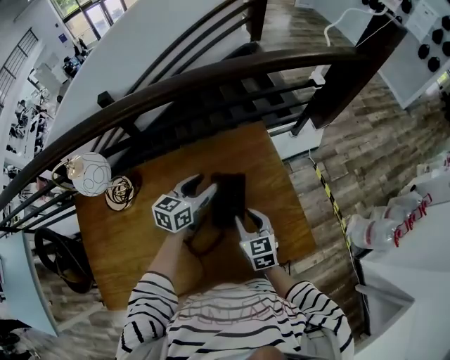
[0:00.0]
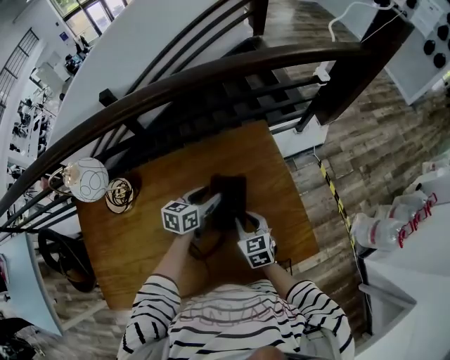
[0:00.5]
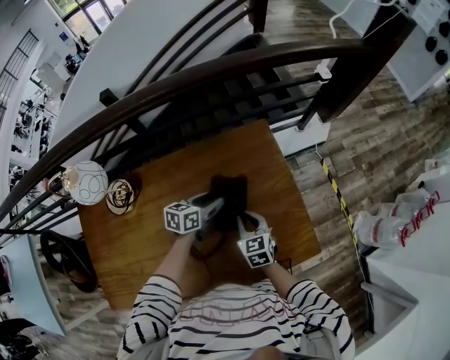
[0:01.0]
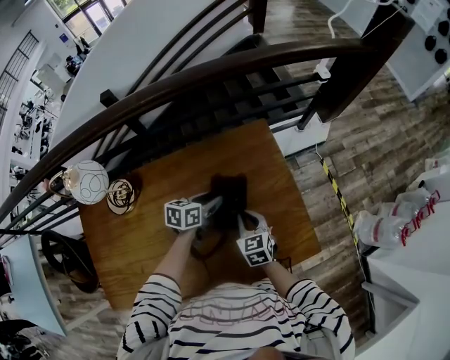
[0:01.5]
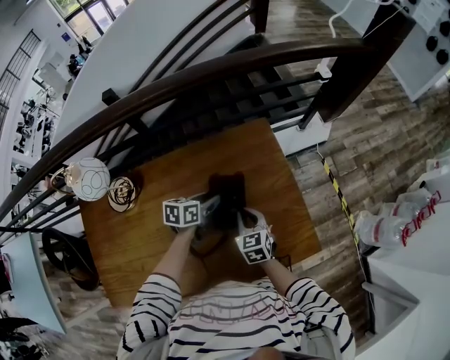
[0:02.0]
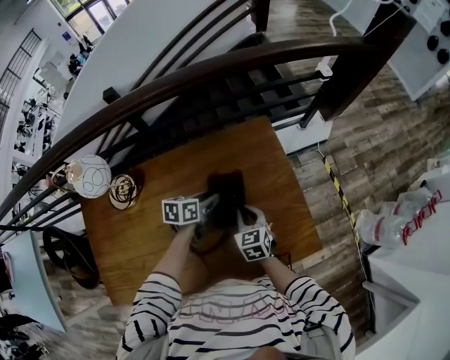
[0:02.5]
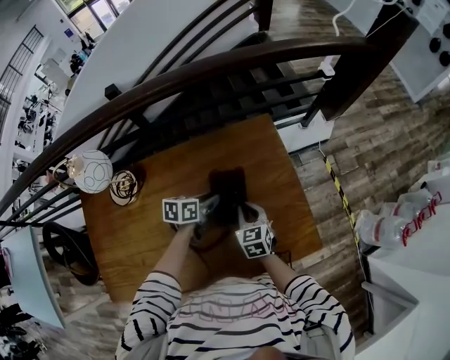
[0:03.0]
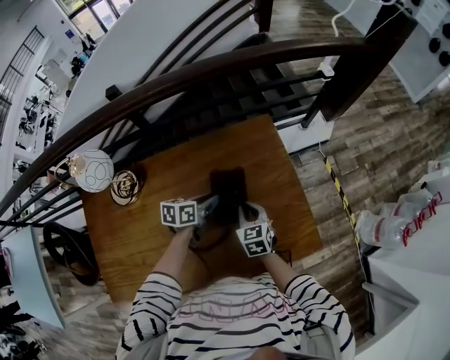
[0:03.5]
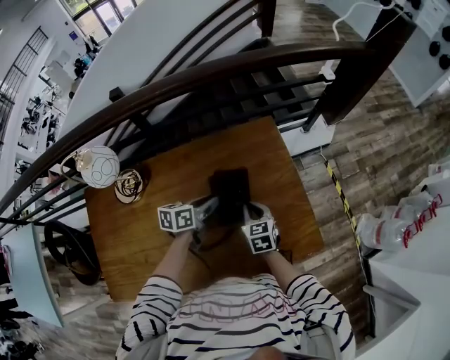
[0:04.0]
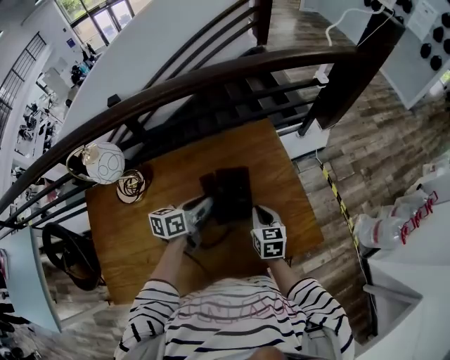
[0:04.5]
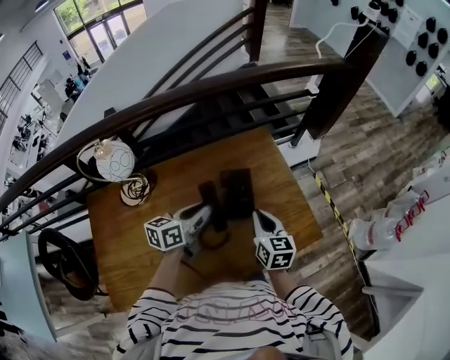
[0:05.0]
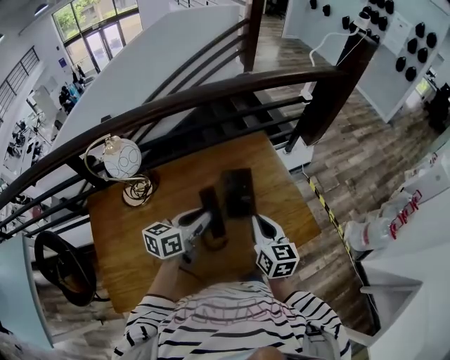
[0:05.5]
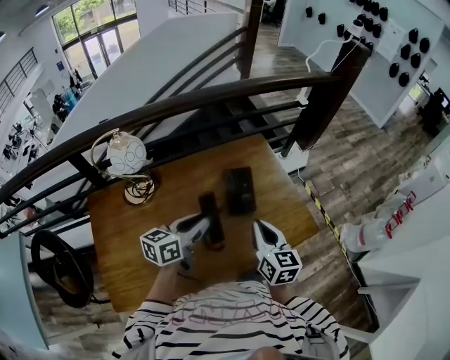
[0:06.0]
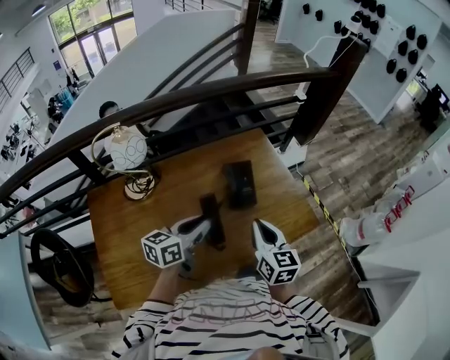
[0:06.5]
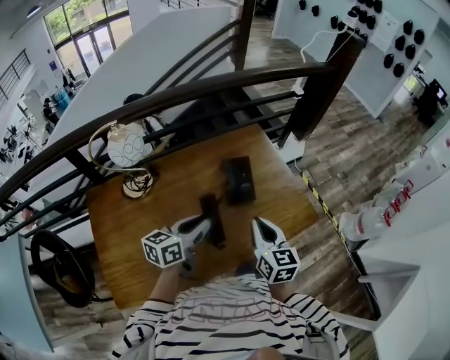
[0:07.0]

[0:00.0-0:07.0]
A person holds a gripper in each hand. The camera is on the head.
0:00.0 to 0:02.0: The left gripper shifts approximately 10 cm downward, and swivels roughly 30 degrees. Meanwhile the right gripper heads downward, covering roughly 5 cm.
0:02.0 to 0:03.5: The grippers stay close to where they were, moving slightly.
0:03.5 to 0:05.0: The grippers both shift upward and backward by roughly 20 cm. The right gripper swivels roughly 30 degrees, while the left gripper swivels roughly 20 degrees.
0:05.0 to 0:07.0: The right gripper heads backward and upward, covering approximately 15 cm; the left gripper travels backward by roughly 15 cm.

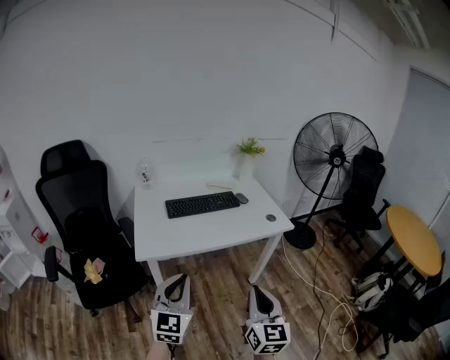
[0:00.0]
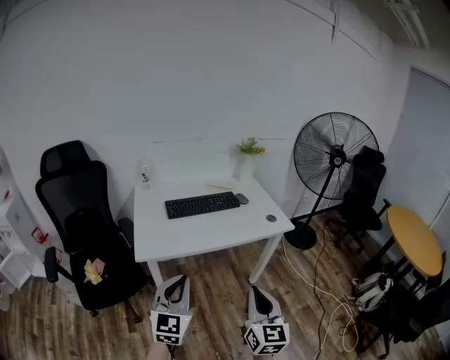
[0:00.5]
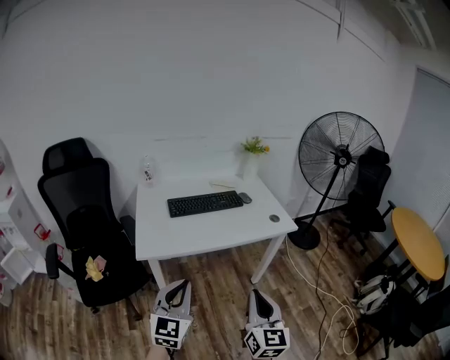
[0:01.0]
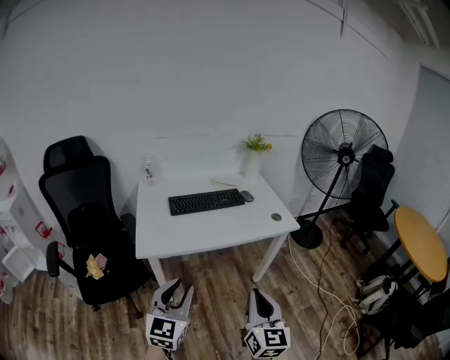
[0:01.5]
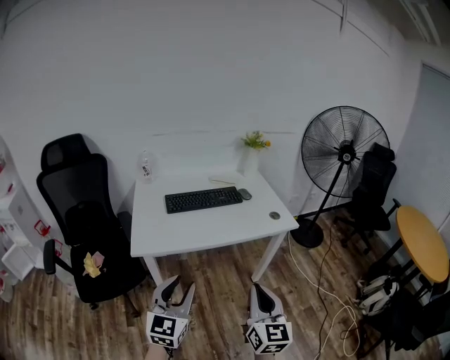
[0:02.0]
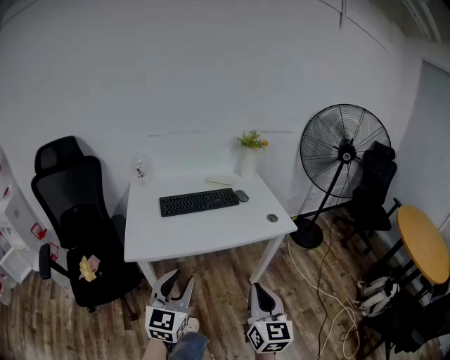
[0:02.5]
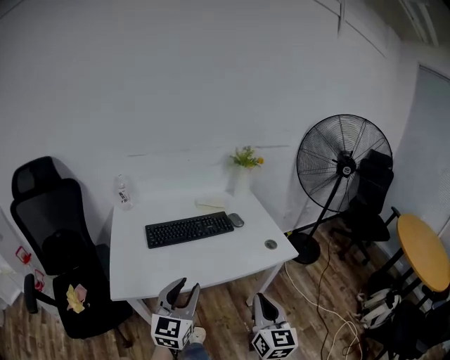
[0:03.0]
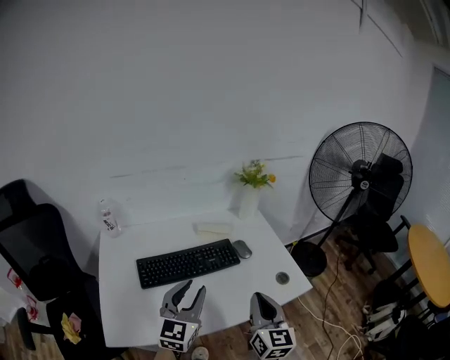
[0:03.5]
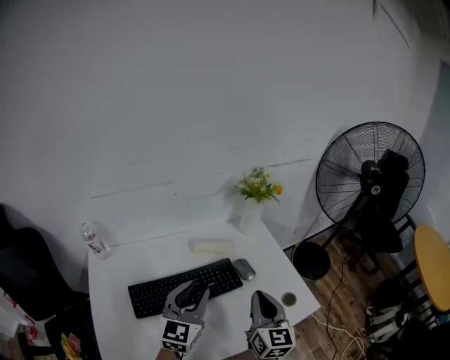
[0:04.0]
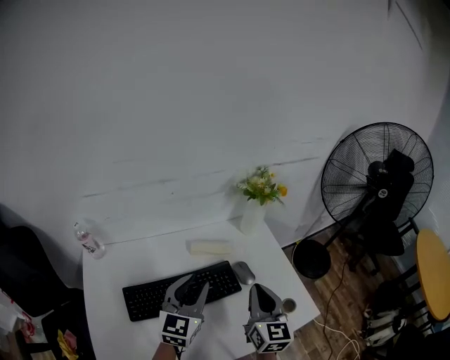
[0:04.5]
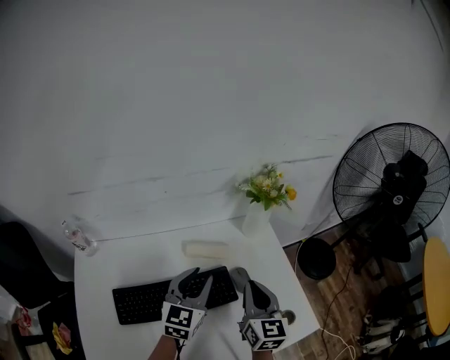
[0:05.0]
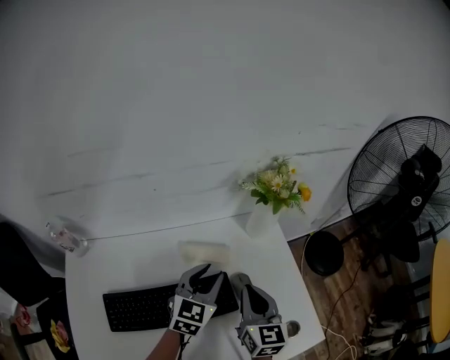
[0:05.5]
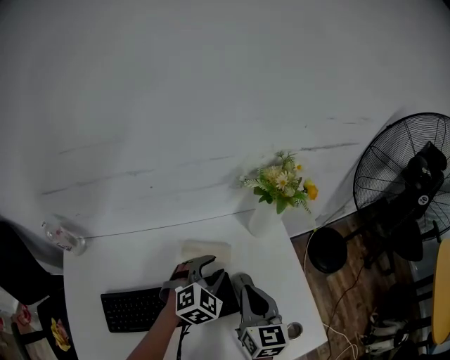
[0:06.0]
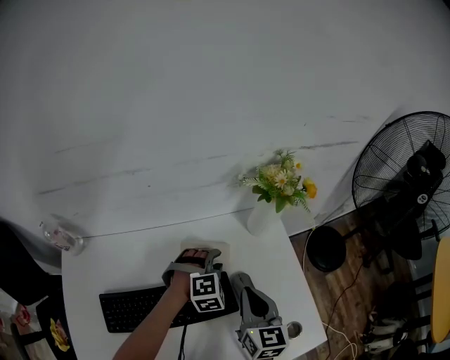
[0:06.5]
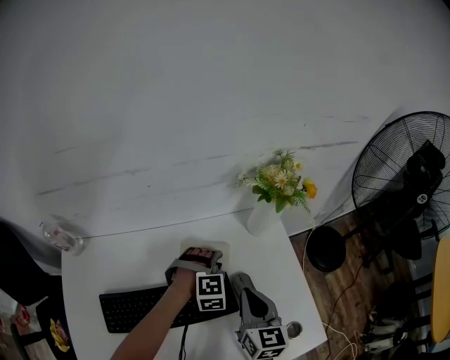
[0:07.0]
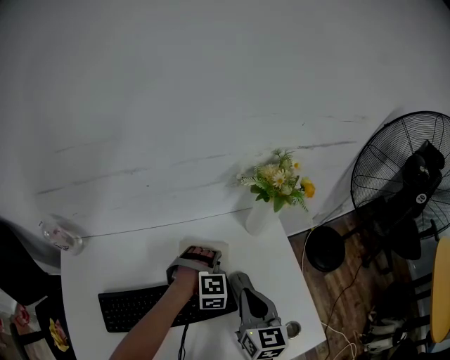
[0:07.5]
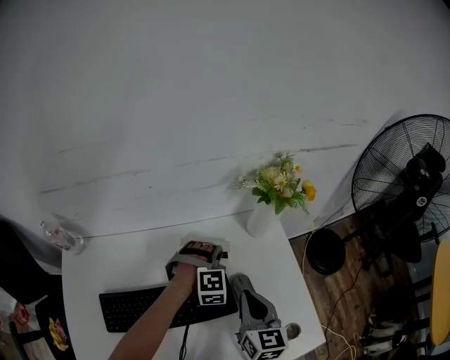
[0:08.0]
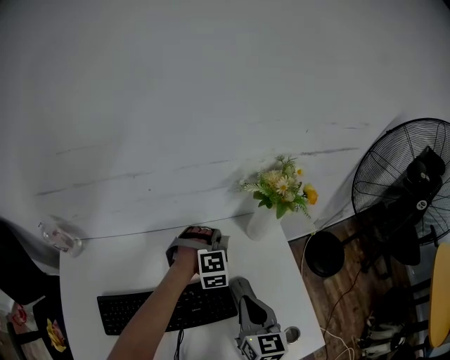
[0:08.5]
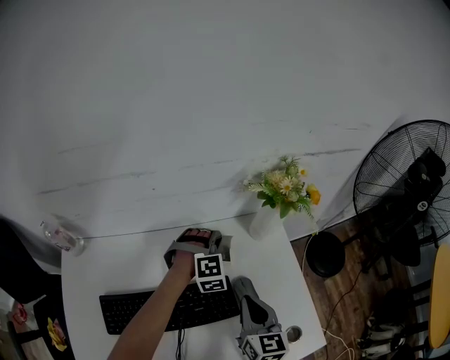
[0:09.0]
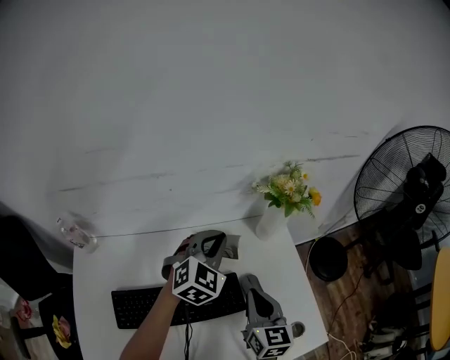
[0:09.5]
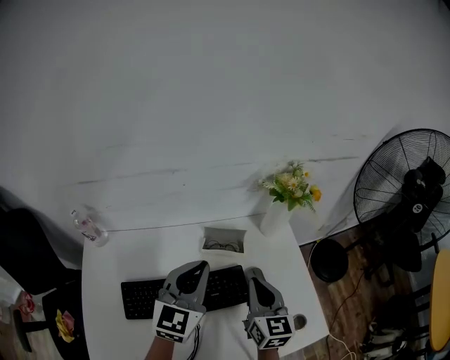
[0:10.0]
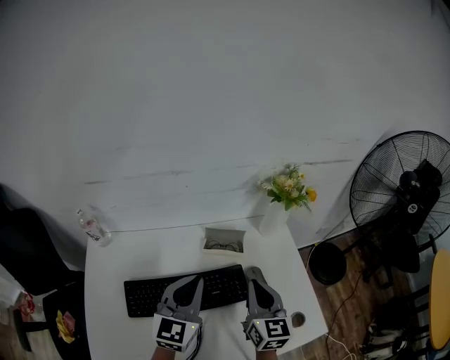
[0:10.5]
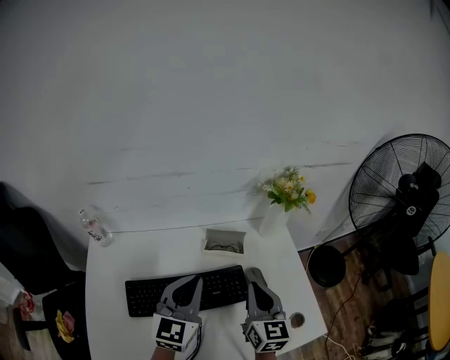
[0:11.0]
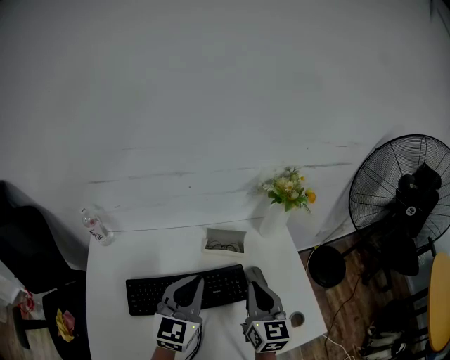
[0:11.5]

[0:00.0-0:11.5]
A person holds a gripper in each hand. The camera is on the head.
0:00.0 to 0:02.0: The right gripper ends up some 5 cm from where it was; the left gripper changes place by about 5 cm, and opens its fingers.
0:02.0 to 0:04.0: Both grippers are carried forward, some 60 cm.
0:04.0 to 0:06.0: Both grippers travel together forward and downward, approximately 25 cm. The left gripper tips its fingers downward by approximately 30 degrees.
0:06.0 to 0:07.5: The left gripper heads downward, covering about 5 cm, and swivels roughly 40 degrees.
0:07.5 to 0:09.5: The left gripper travels upward by roughly 20 cm, tips its fingers upward by about 30 degrees, and closes its fingers.
0:09.5 to 0:11.5: The left gripper moves backward and to the left, approximately 20 cm, and rotates approximately 30 degrees. The right gripper goes some 5 cm upward.

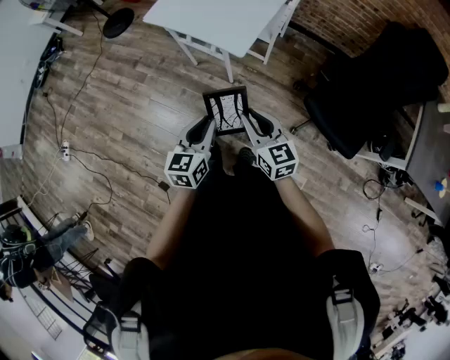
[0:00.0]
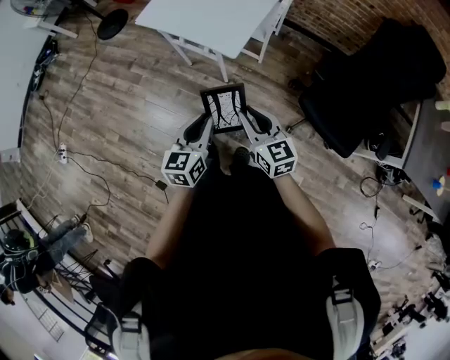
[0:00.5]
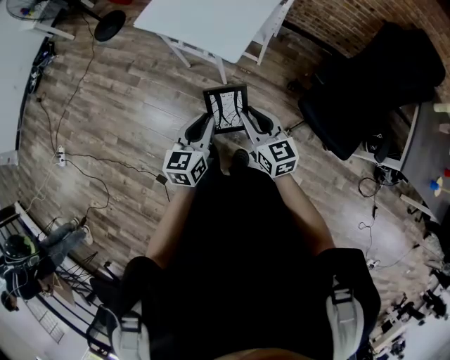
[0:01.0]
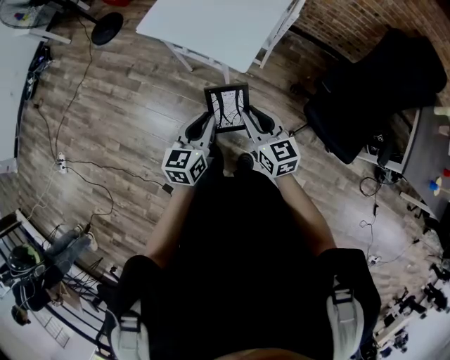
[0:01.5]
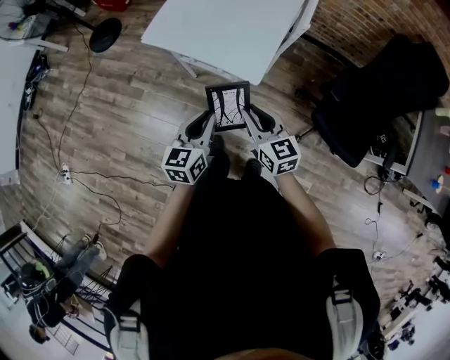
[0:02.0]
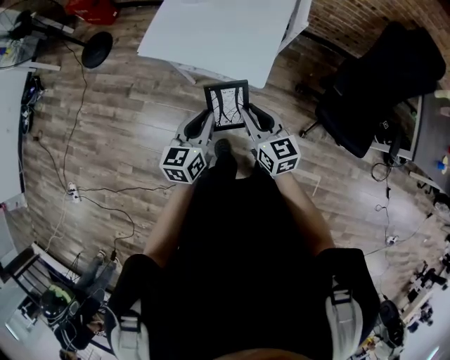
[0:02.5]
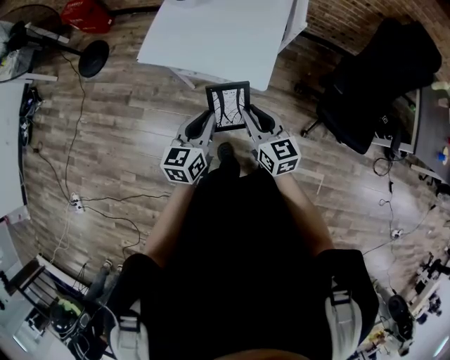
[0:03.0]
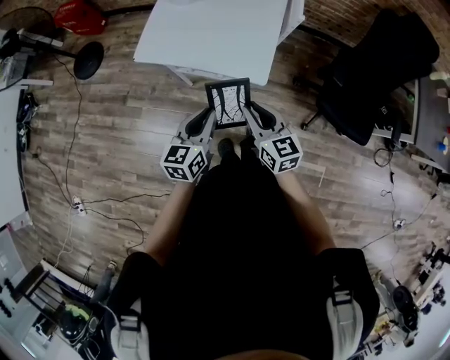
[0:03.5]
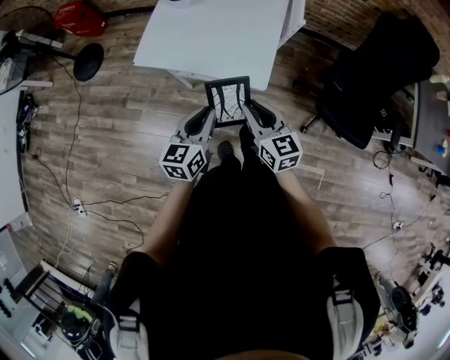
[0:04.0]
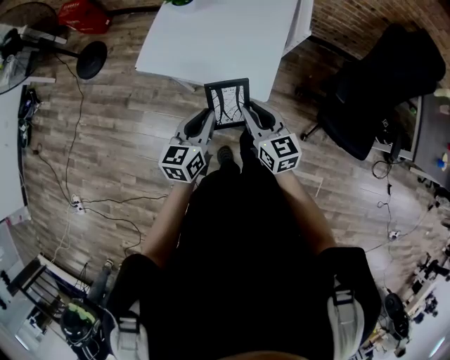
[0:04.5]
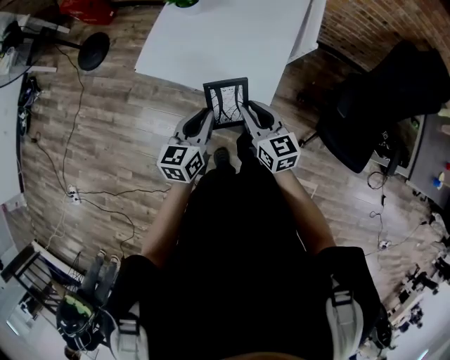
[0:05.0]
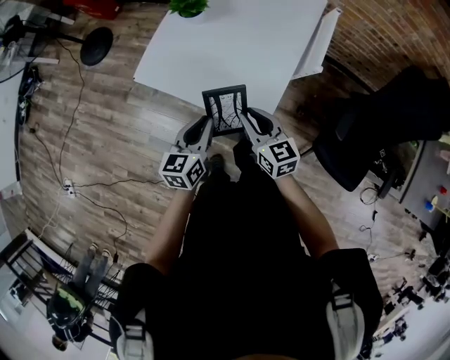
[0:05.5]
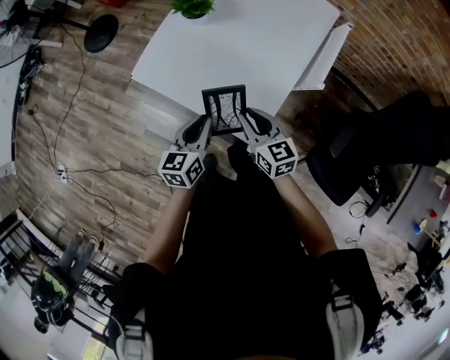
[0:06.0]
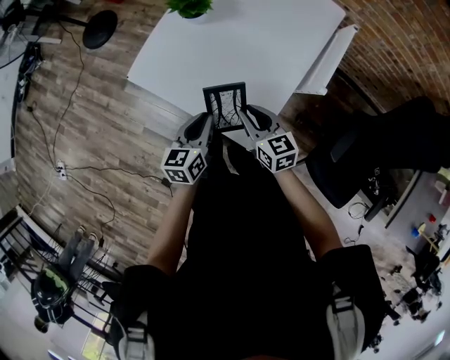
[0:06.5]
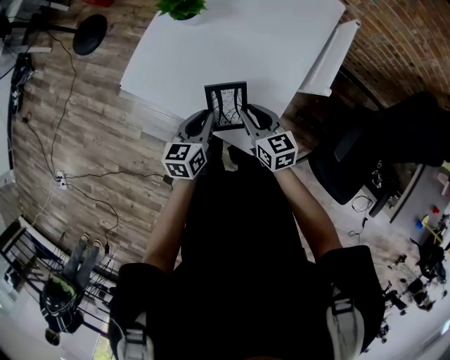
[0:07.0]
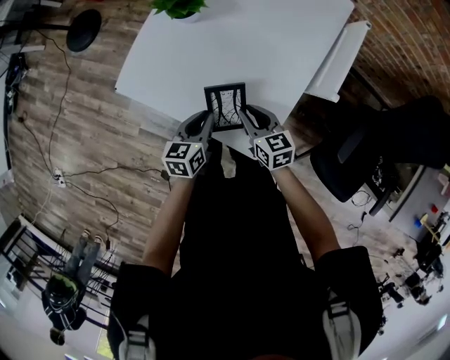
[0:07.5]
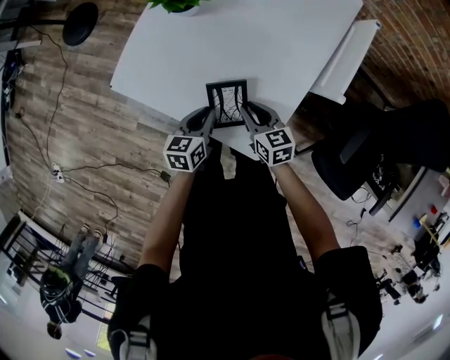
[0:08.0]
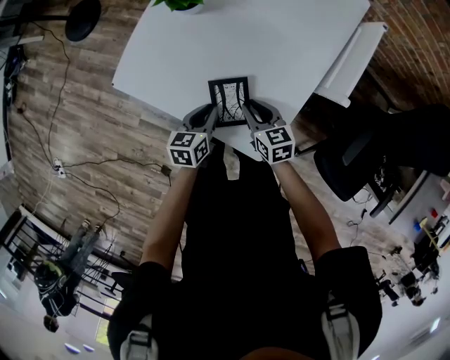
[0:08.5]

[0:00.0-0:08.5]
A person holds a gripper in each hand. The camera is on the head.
0:00.0 to 0:02.0: Both grippers travel together forward and to the left, roughly 20 cm.
0:02.0 to 0:04.0: Both grippers travel together forward and to the left, roughly 10 cm.
0:04.0 to 0:06.5: The left gripper travels forward and downward by about 20 cm, and changes its angle by approximately 20 degrees, while the right gripper shifts approximately 25 cm forward, and swivels roughly 20 degrees.
0:06.5 to 0:08.5: The two grippers go about 15 cm downward.
